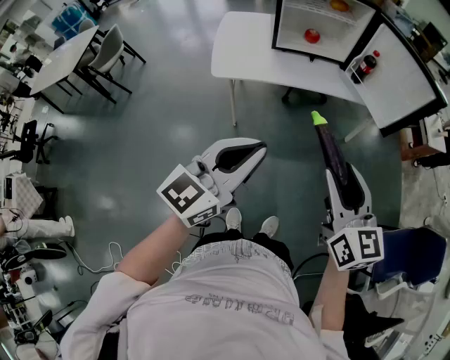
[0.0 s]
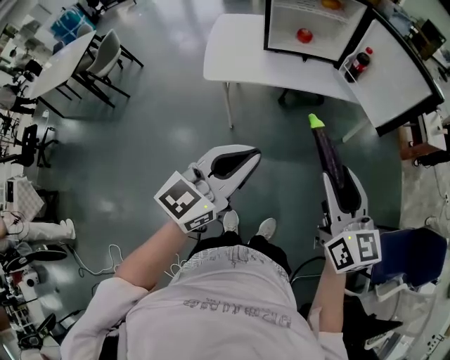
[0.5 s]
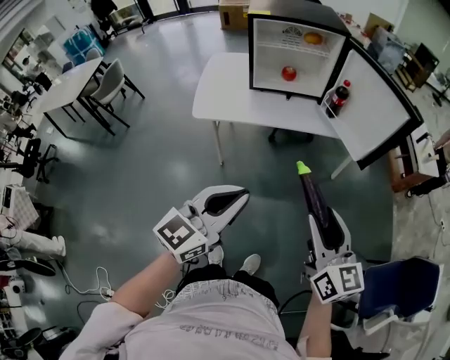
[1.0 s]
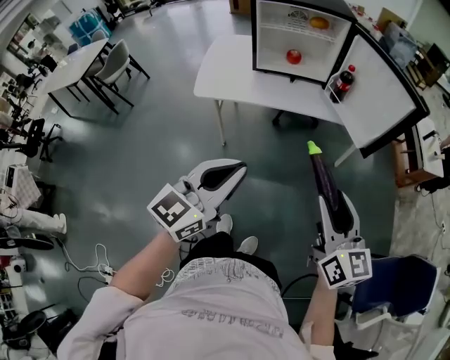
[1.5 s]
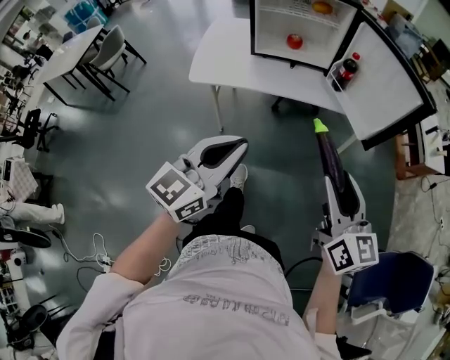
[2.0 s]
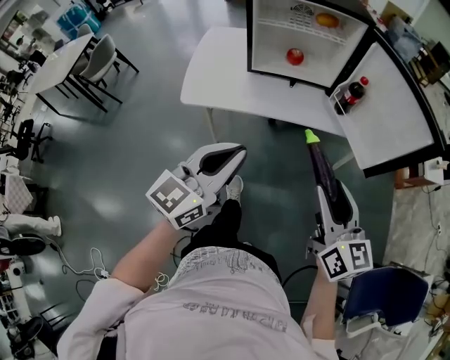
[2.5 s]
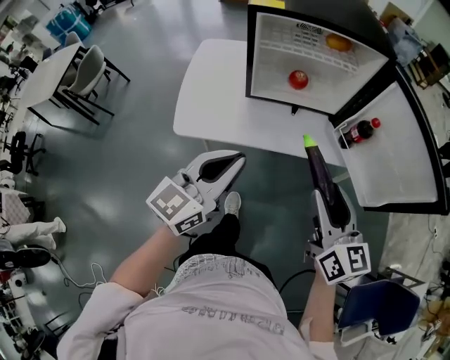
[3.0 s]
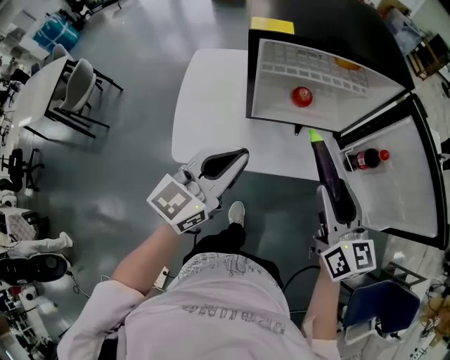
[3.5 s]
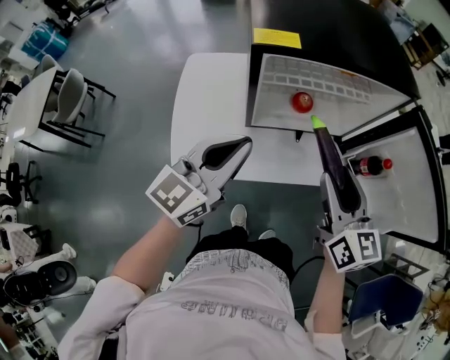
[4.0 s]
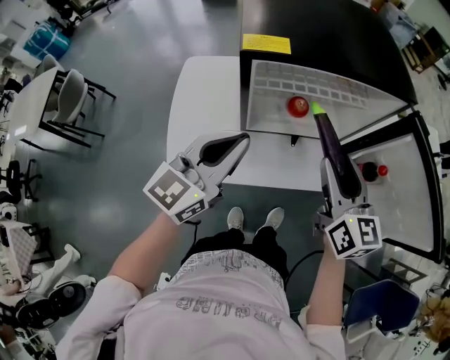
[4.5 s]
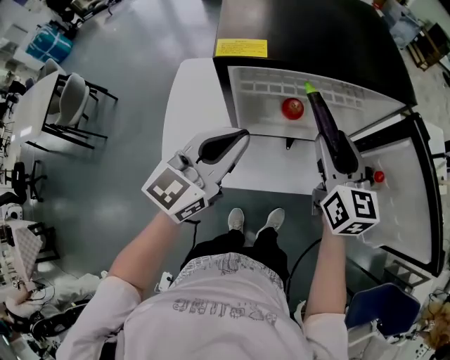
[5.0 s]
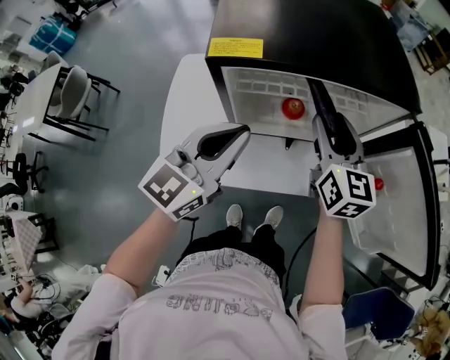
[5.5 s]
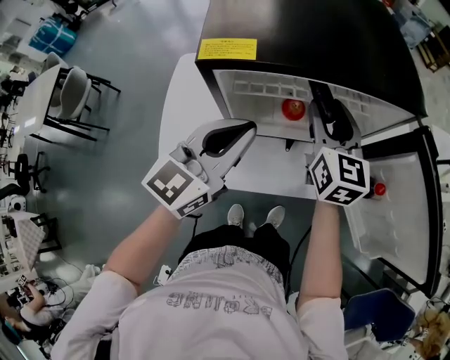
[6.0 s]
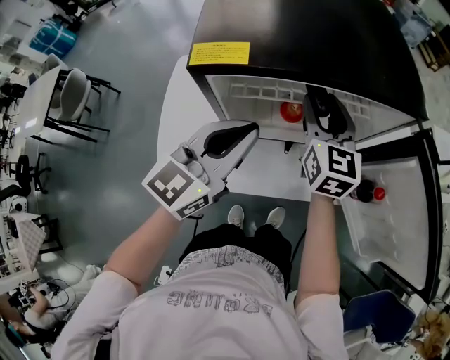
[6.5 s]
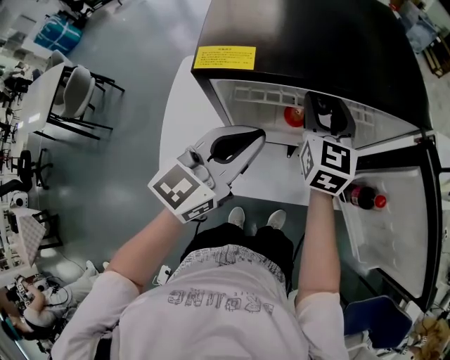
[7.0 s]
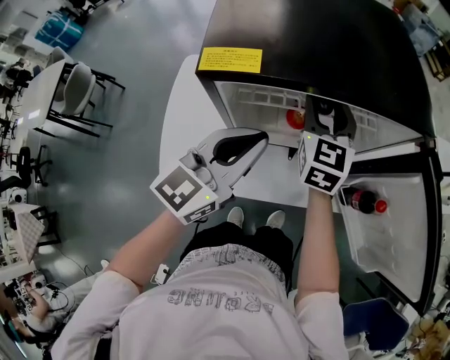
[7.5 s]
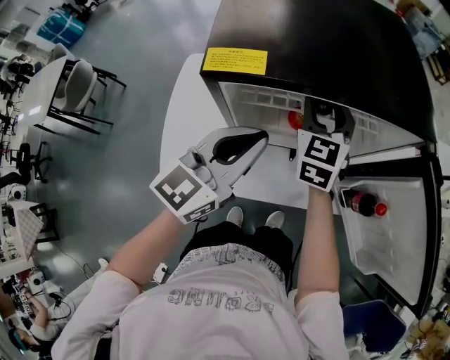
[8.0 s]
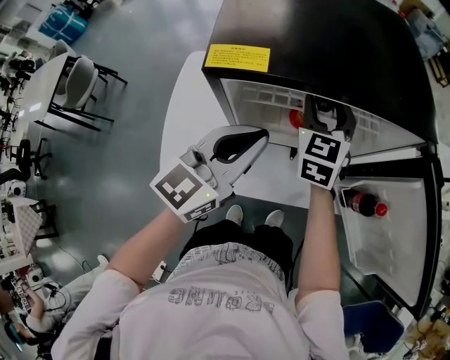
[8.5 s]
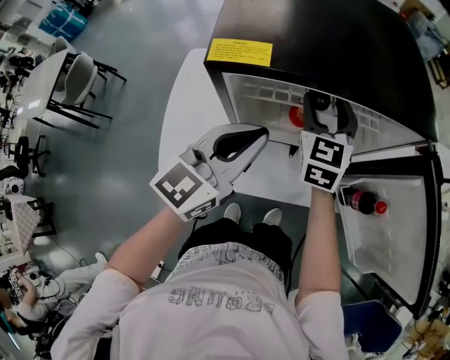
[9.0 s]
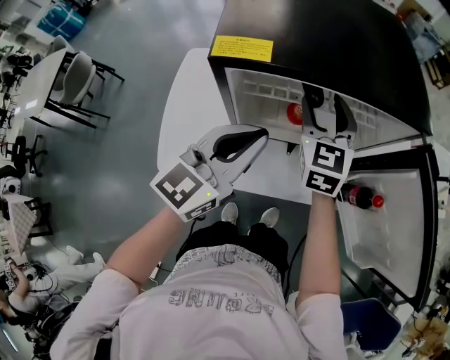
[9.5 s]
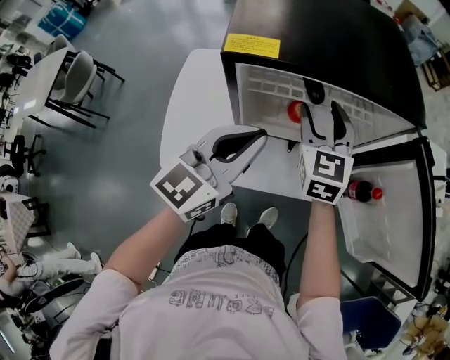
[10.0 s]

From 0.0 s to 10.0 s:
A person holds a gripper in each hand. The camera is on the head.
From 0.0 s to 2.0 s: Both grippers move to the right and forward, some 15 cm.
From 2.0 s to 4.0 s: The pair of grippers is taken forward and to the left, some 50 cm.
From 4.0 s to 6.0 s: The left gripper travels forward and to the right by roughly 10 cm. The right gripper moves forward, approximately 20 cm.
From 6.0 s to 8.0 s: The right gripper ends up some 5 cm from where it was, and turns by about 20 degrees.
From 8.0 s to 10.0 s: The right gripper shifts about 5 cm backward.

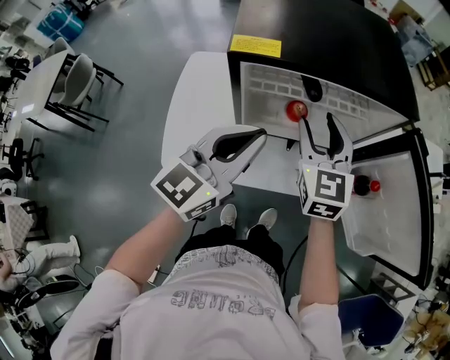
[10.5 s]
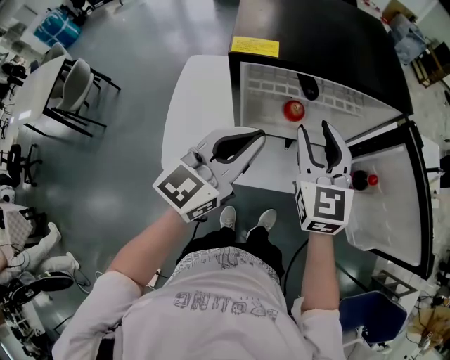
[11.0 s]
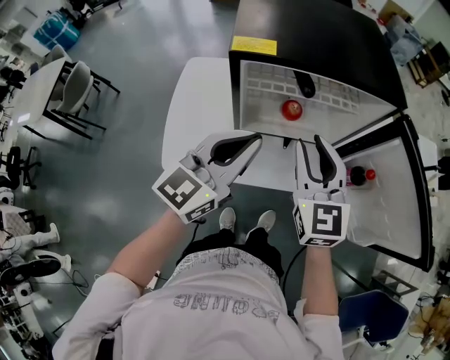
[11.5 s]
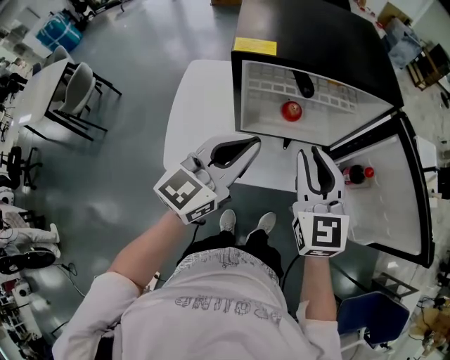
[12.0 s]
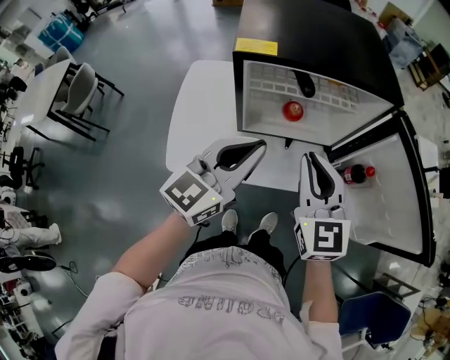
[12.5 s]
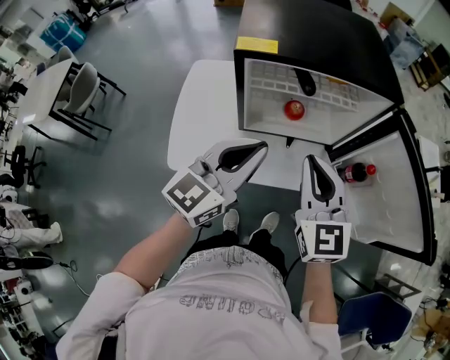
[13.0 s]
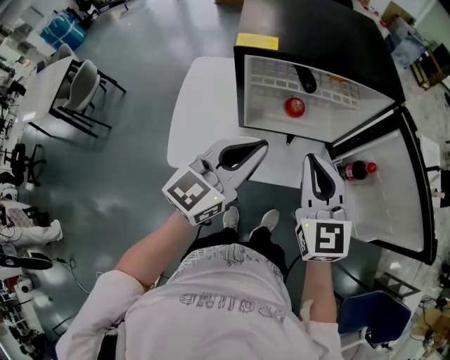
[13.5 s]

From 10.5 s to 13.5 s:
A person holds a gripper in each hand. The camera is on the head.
From 10.5 s to 12.0 s: The right gripper travels backward by about 10 cm, and closes up.
From 12.0 s to 13.5 s: The grippers move only a little.

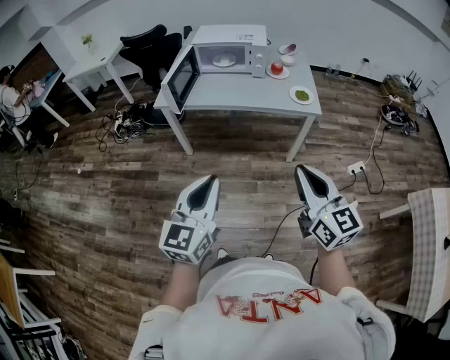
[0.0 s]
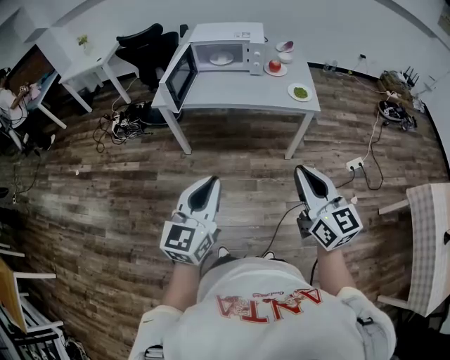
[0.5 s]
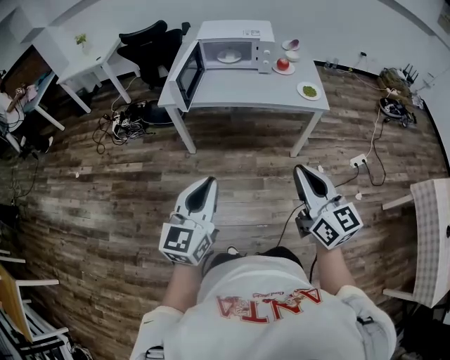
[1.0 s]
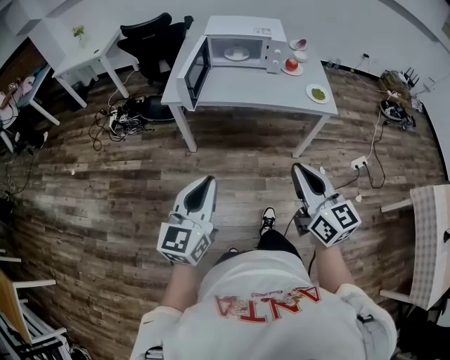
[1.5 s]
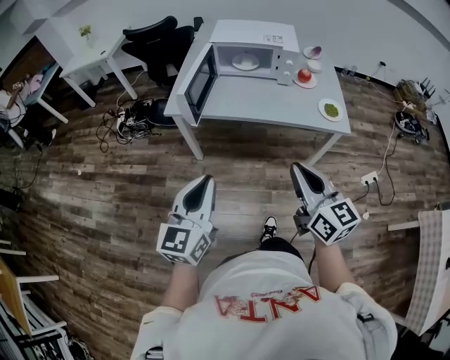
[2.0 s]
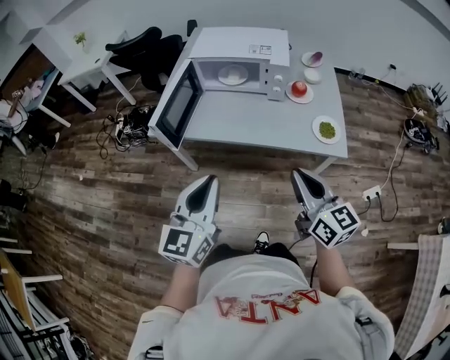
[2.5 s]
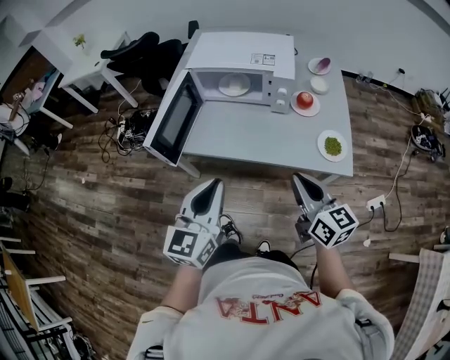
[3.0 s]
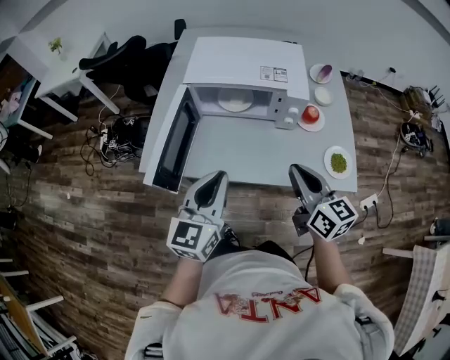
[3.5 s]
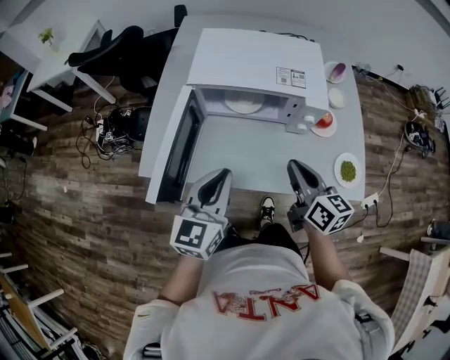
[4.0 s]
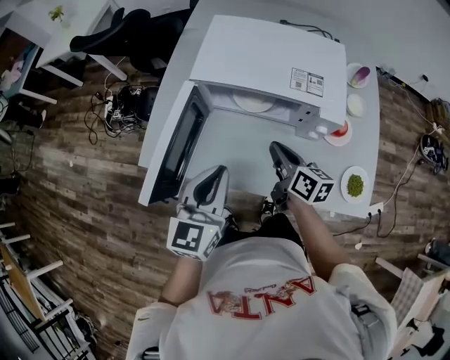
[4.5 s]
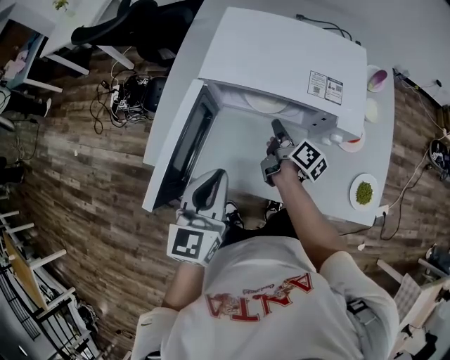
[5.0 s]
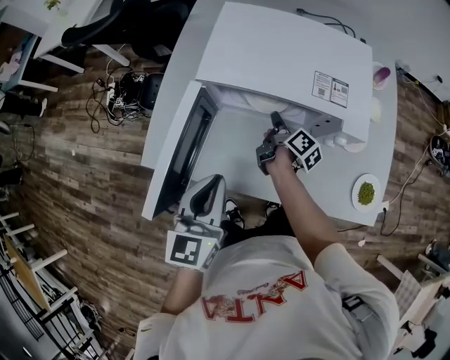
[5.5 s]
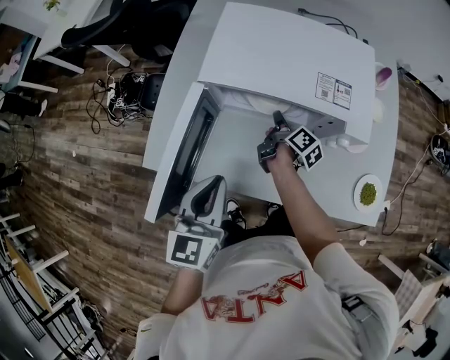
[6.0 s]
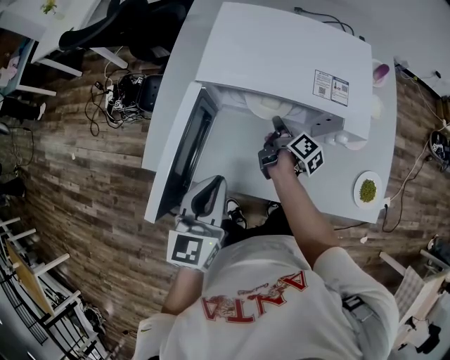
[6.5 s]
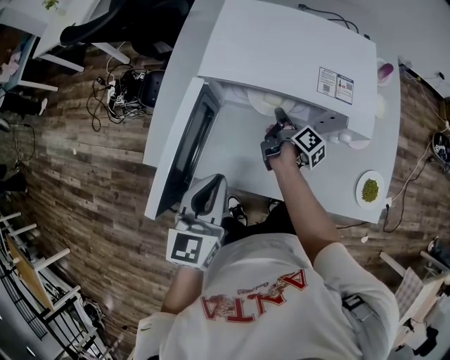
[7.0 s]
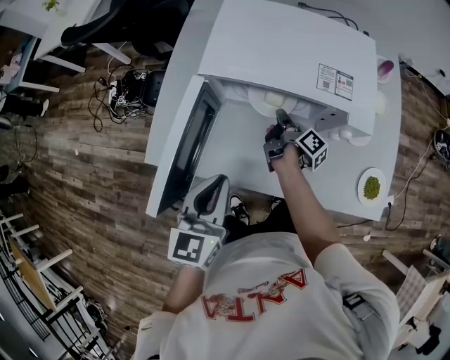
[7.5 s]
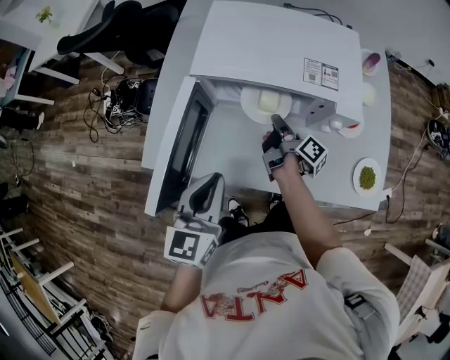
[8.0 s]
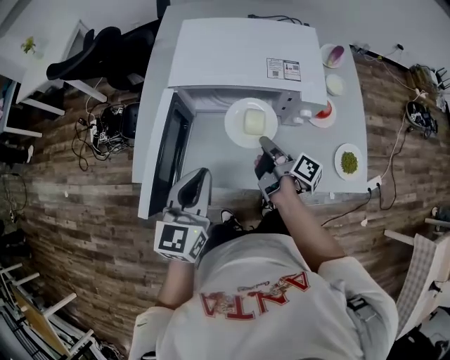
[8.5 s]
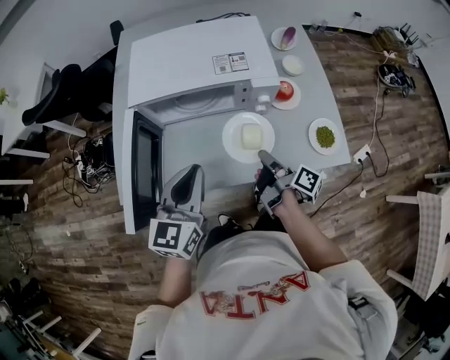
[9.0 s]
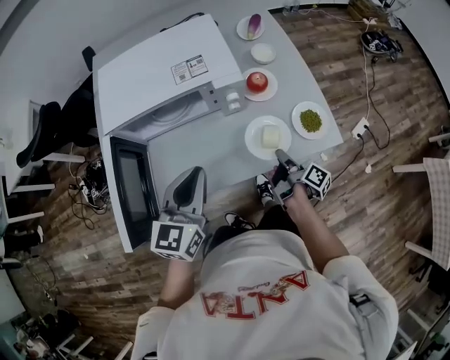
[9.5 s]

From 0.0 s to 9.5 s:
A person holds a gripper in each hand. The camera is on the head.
From 0.0 s to 2.0 s: Both grippers move forward and to the left, some 20 cm.
From 2.0 s to 4.0 s: The pair of grippers is taken forward, approximately 40 cm.
From 4.0 s to 5.5 s: The left gripper travels forward by approximately 5 cm, while the right gripper goes roughly 30 cm forward and downward, and rolls clockwise, seen from behind, by approximately 50 degrees.
From 5.5 s to 7.5 s: There are only small adjustments of the grippers.
From 7.5 s to 9.5 s: The left gripper heads to the right, covering about 15 cm, and turns by about 30 degrees. The right gripper shifts about 35 cm to the right and backward.

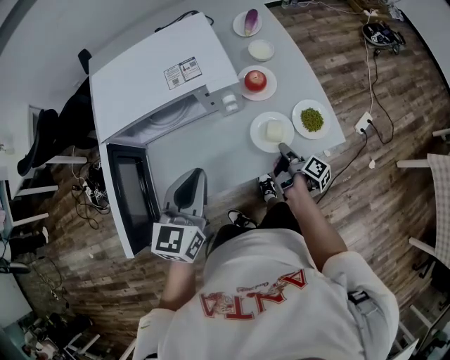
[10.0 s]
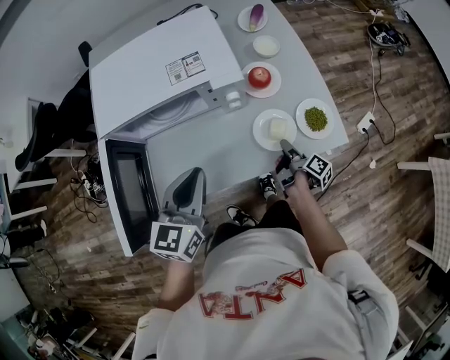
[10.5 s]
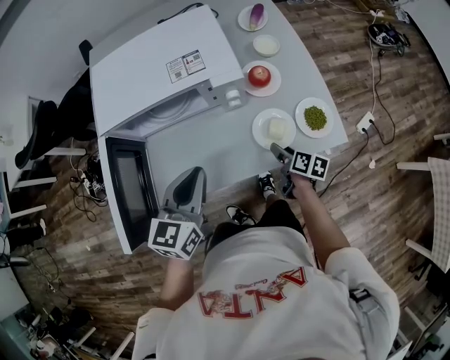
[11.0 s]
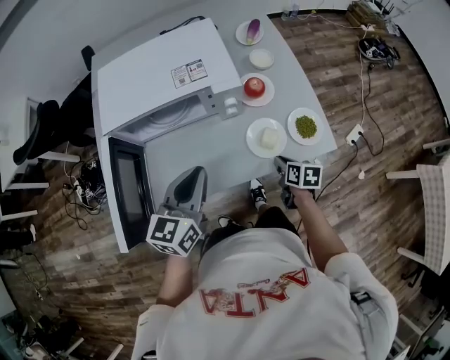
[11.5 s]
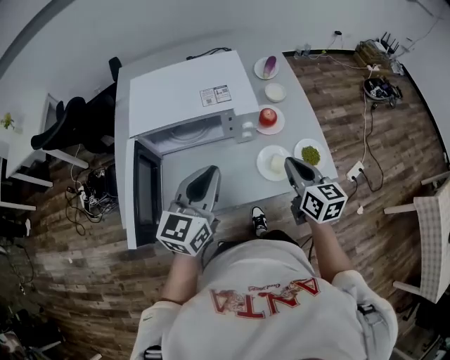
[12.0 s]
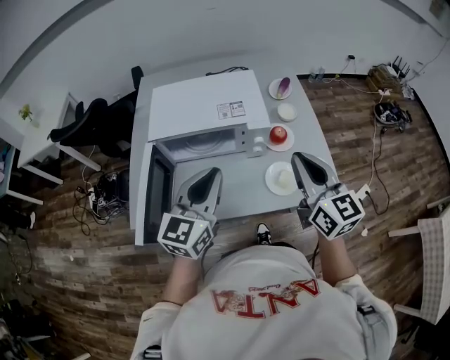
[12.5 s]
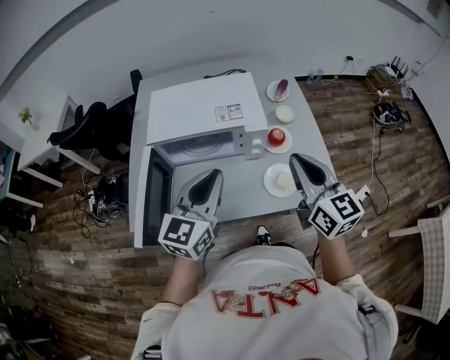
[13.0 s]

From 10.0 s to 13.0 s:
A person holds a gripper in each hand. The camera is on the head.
From 10.0 s to 11.5 s: The right gripper twists about 50 degrees counterclockwise, seen from behind, and opens, then closes once more.
From 11.5 s to 13.0 s: The right gripper is displaced upward by roughly 35 cm, and tilts its fingers about 40 degrees upward. Meanwhile the left gripper goes approximately 10 cm upward.

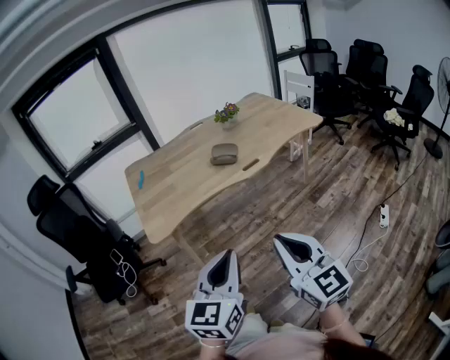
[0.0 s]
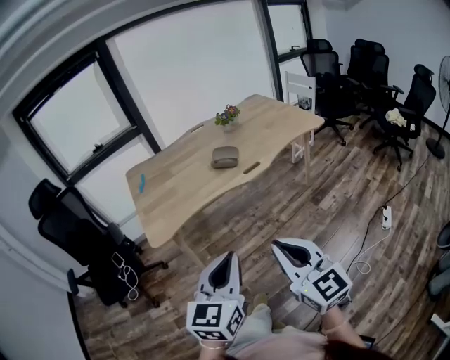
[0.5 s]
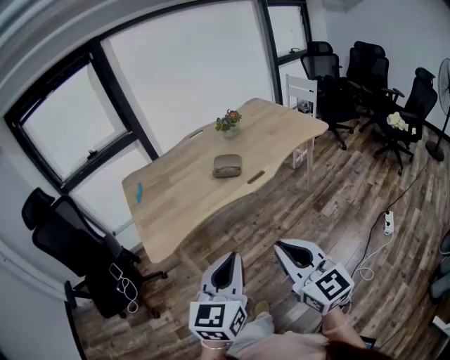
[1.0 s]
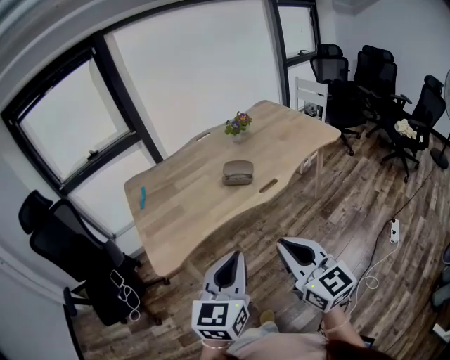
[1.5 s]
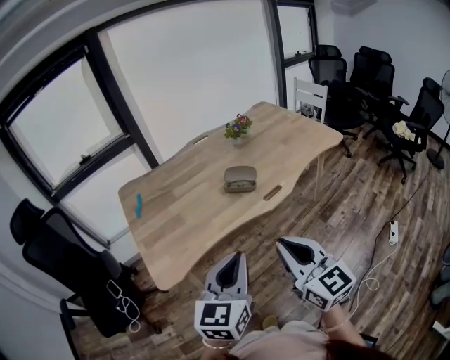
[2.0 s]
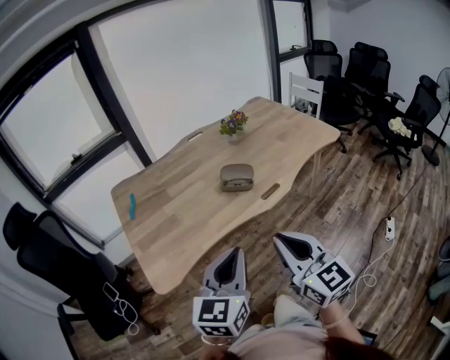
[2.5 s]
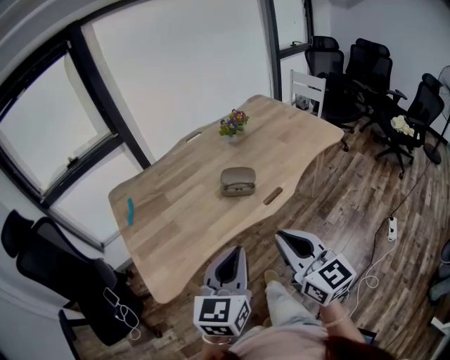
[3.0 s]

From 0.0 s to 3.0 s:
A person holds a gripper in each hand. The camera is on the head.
From 0.0 s to 1.5 s: Both grippers move forward, roughly 15 cm.
From 1.5 s to 3.0 s: Both grippers travel together forward, some 15 cm.
